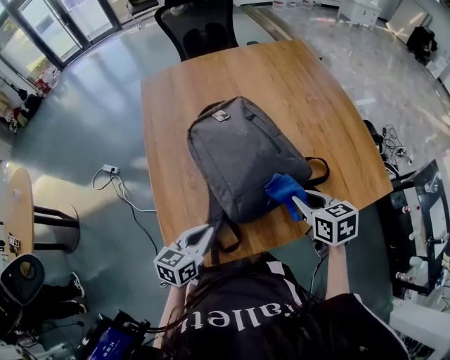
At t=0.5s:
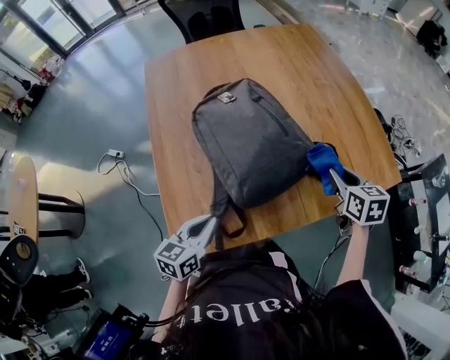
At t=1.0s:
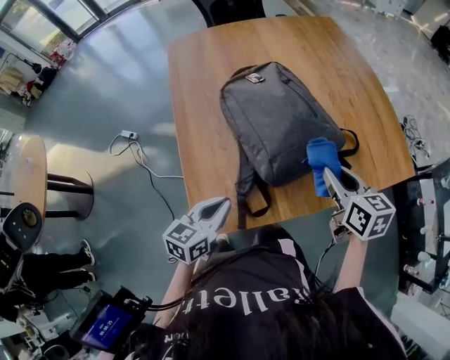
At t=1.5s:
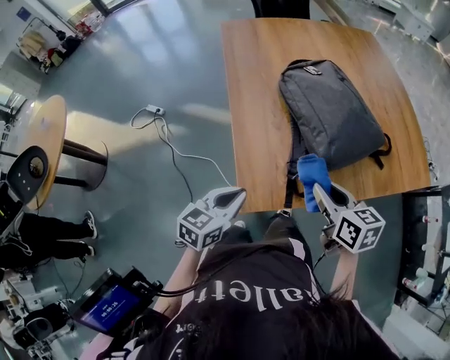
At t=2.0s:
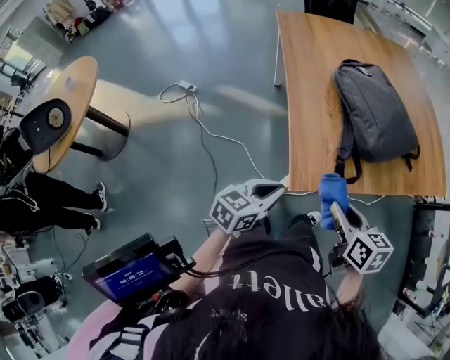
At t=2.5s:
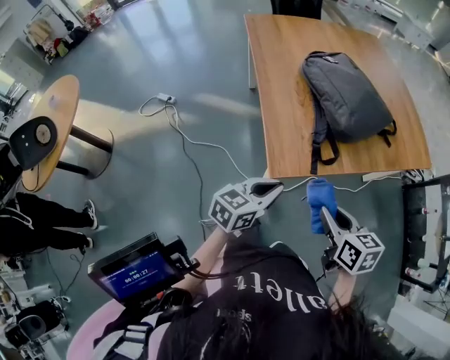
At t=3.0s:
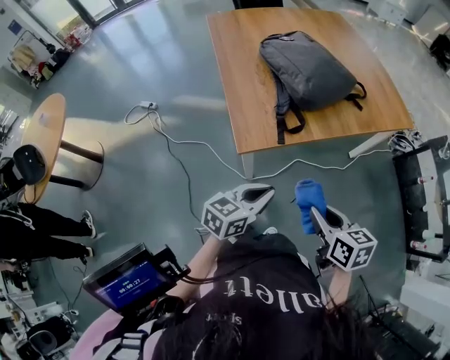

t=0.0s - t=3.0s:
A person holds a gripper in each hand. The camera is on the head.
t=0.0s - t=1.5s: Both grippers travel together to the left and backward, some 25 cm.
t=1.5s - t=3.0s: The right gripper moves backward, approximately 30 cm. Meanwhile the left gripper shifts approximately 25 cm backward and to the right.

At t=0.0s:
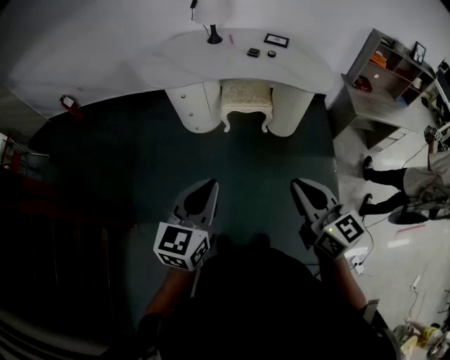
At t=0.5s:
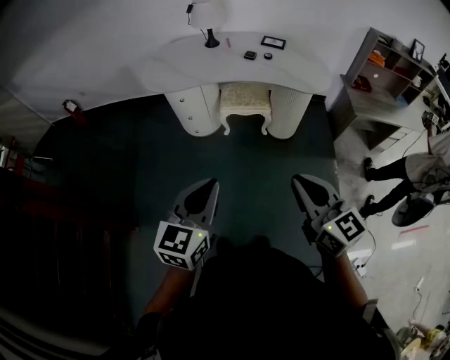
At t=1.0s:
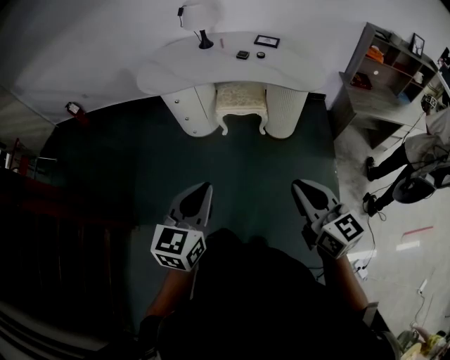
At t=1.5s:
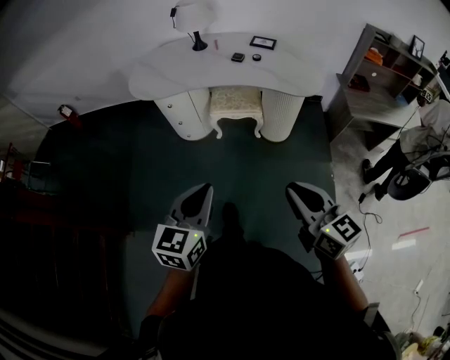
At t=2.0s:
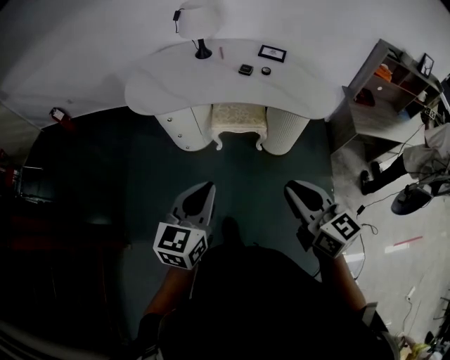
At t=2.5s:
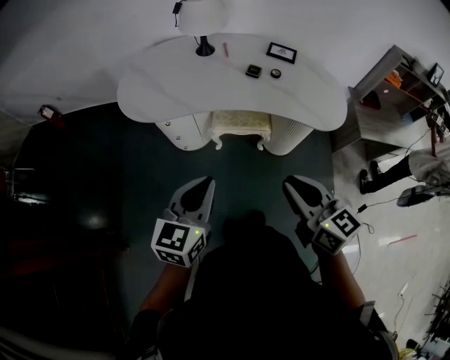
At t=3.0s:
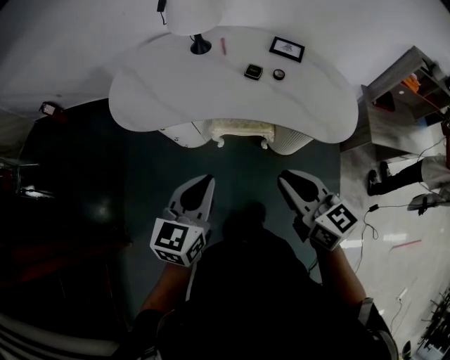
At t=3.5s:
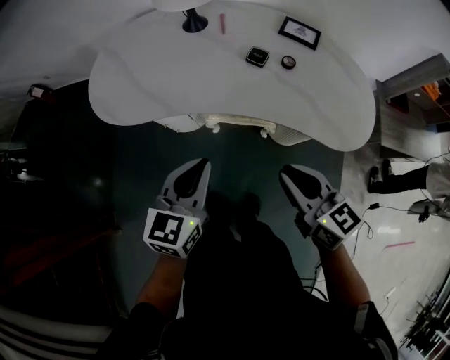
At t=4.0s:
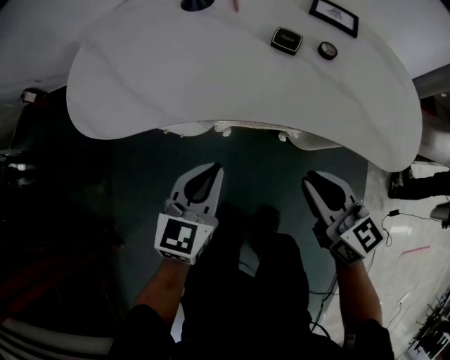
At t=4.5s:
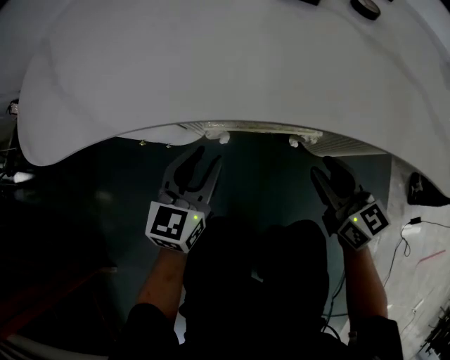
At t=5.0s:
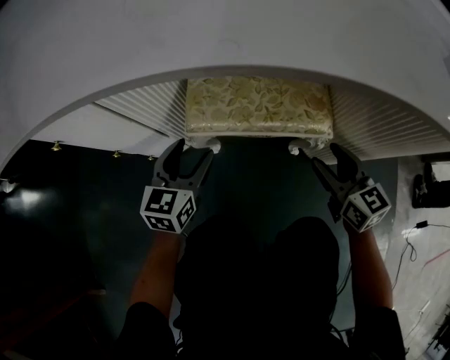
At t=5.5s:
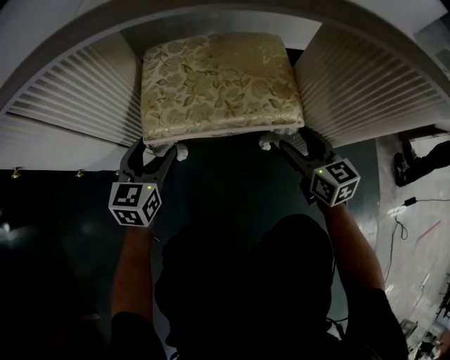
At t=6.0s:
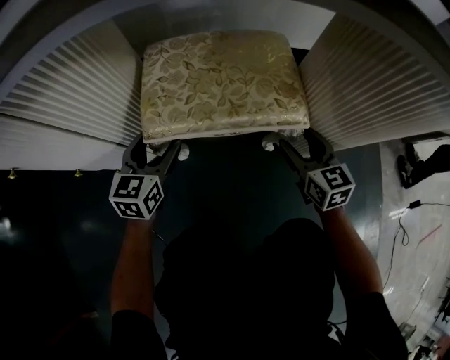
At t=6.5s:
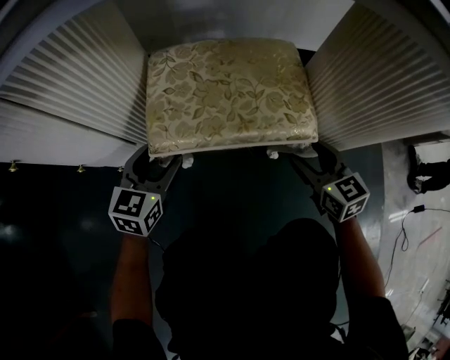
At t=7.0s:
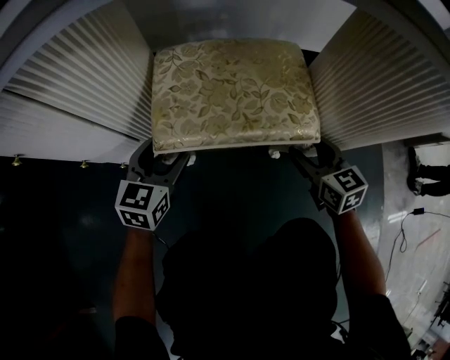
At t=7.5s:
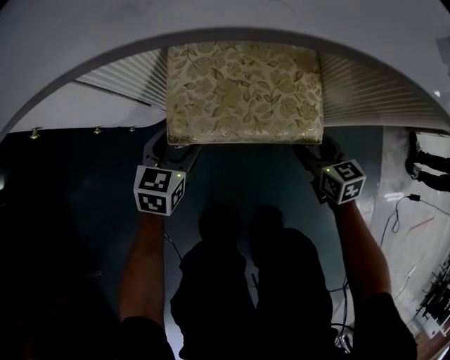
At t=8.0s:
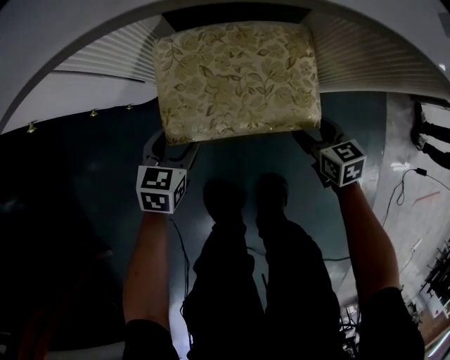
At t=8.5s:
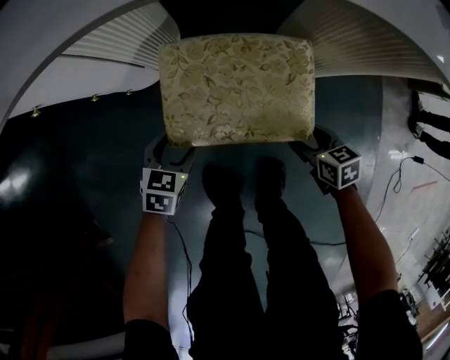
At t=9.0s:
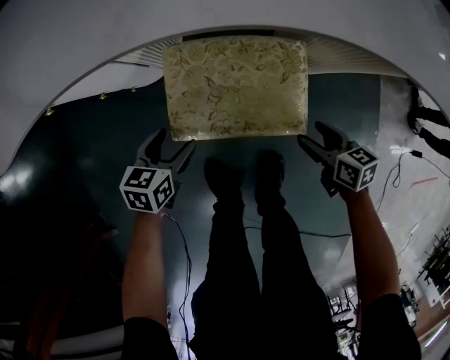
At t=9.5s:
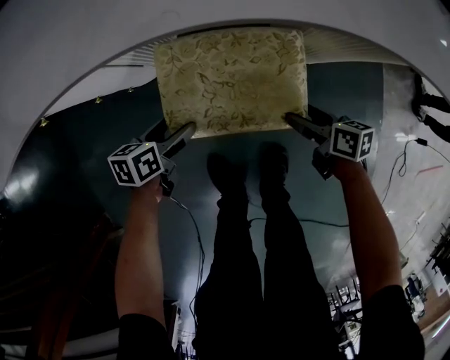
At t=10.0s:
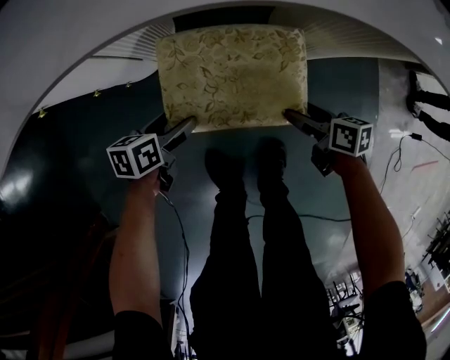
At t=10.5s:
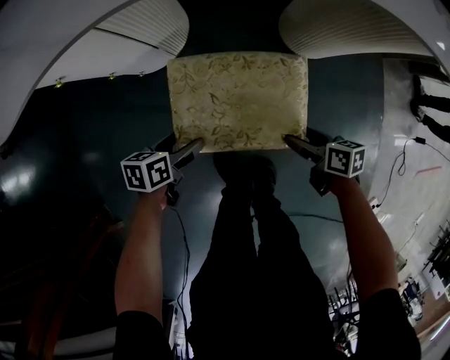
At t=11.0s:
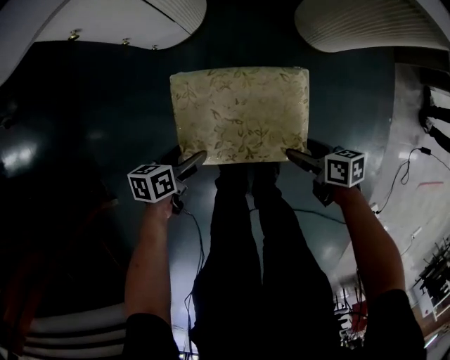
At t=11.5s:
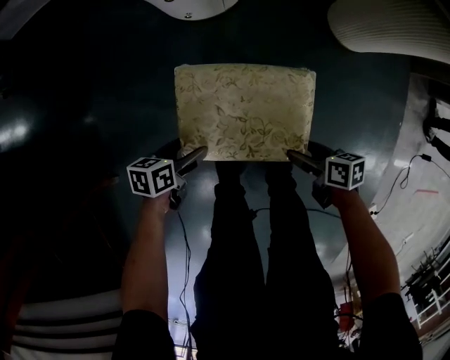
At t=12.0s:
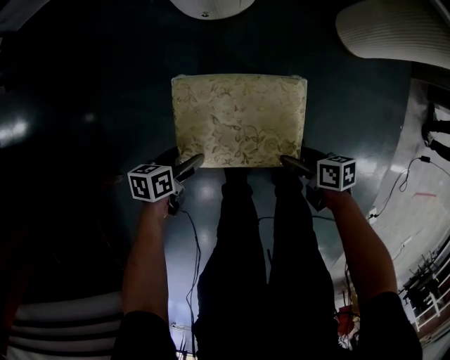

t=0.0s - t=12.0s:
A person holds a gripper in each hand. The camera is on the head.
t=0.0s - t=2.0s: Both grippers move forward and to the right, some 20 cm.
t=2.0s - t=4.0s: The grippers both shift forward and downward by about 50 cm.
t=4.0s - t=6.0s: The right gripper travels downward by approximately 50 cm, swivels approximately 30 degrees, and opens up. The left gripper is displaced downward and forward by about 50 cm, and opens its fingers.
t=6.0s - t=8.0s: The left gripper rotates approximately 30 degrees. Meanwhile the right gripper rotates roughly 30 degrees.
t=8.0s - t=10.0s: The left gripper changes place by roughly 5 cm, and rotates some 40 degrees, while the right gripper shifts about 5 cm upward, and turns by roughly 30 degrees.
t=10.0s - t=12.0s: The grippers move only a little.

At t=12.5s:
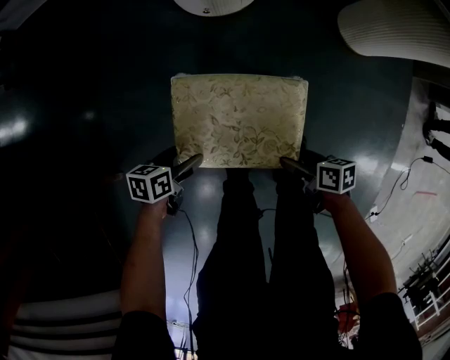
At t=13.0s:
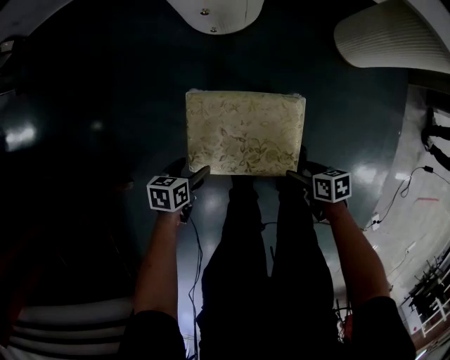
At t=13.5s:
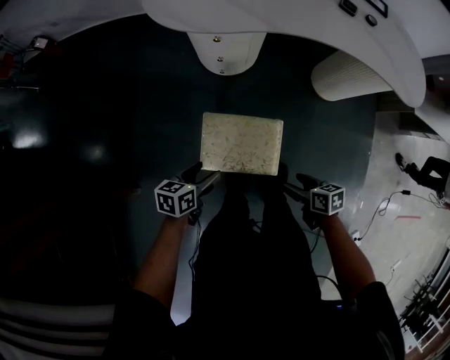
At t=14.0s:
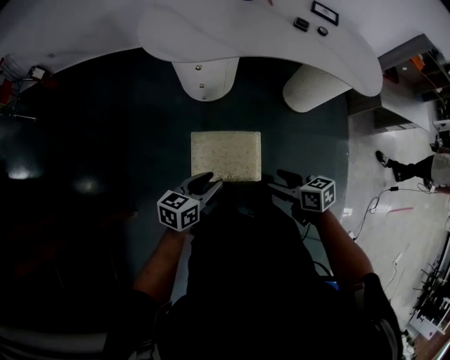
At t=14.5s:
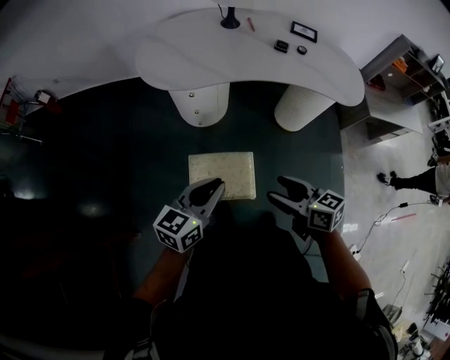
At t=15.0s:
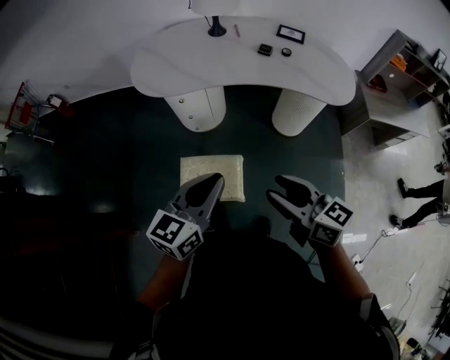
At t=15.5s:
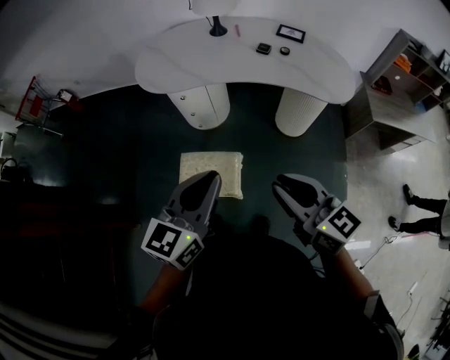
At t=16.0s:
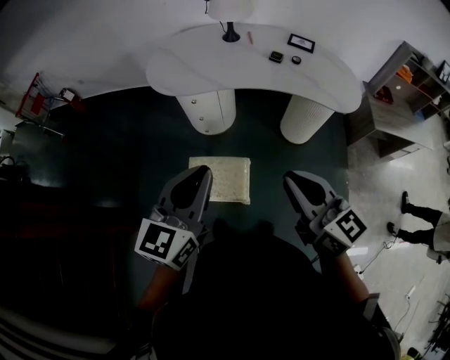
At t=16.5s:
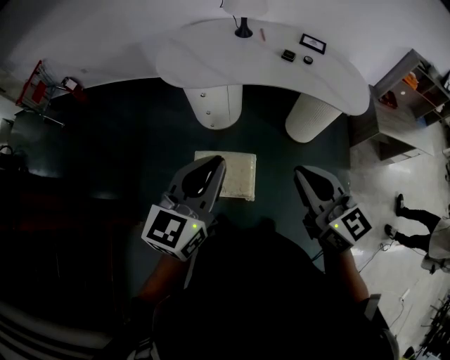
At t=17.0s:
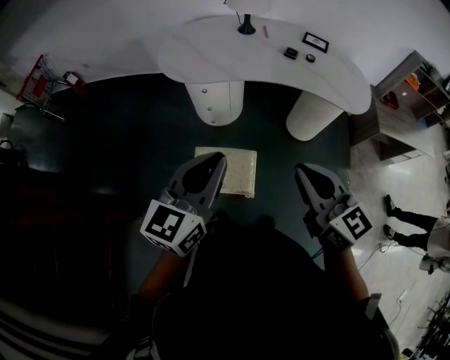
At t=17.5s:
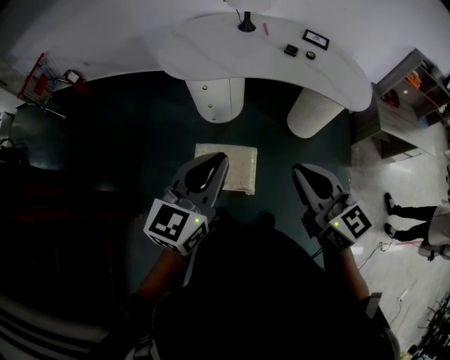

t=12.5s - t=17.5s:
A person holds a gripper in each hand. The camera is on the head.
t=12.5s - t=15.0s: Both grippers travel together upward, roughly 60 cm. The left gripper points its fingers roughly 40 degrees further upward, and closes up. Meanwhile the right gripper angles its fingers upward, by about 30 degrees, and closes up.
t=15.0s - t=17.5s: The left gripper heads upward and to the left, covering some 10 cm, while the right gripper travels upward by about 10 cm, and closes up.

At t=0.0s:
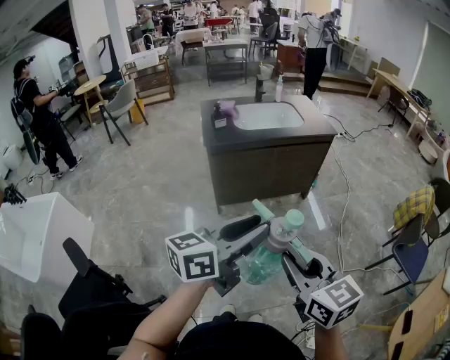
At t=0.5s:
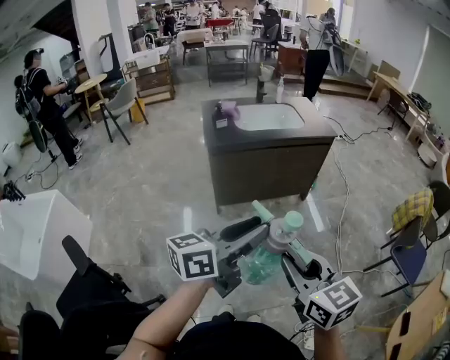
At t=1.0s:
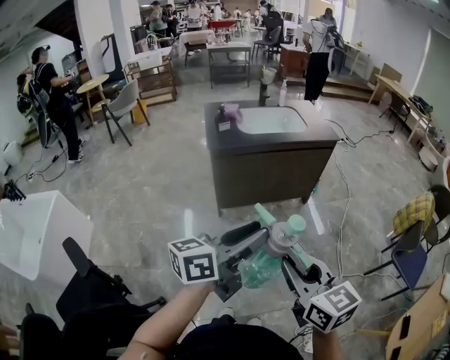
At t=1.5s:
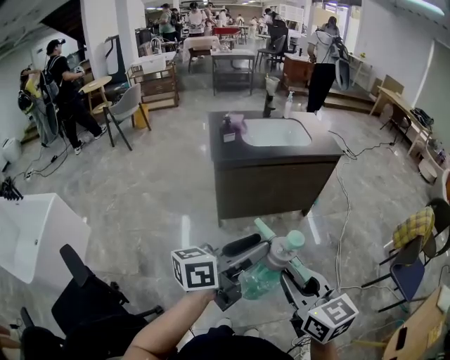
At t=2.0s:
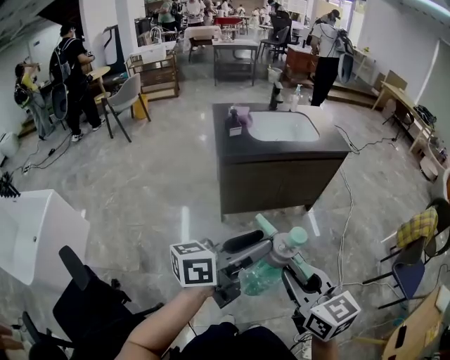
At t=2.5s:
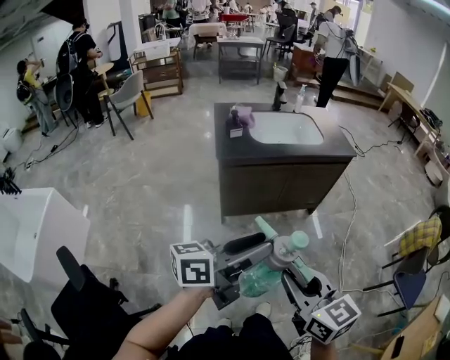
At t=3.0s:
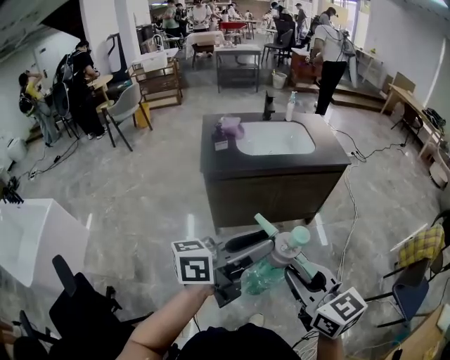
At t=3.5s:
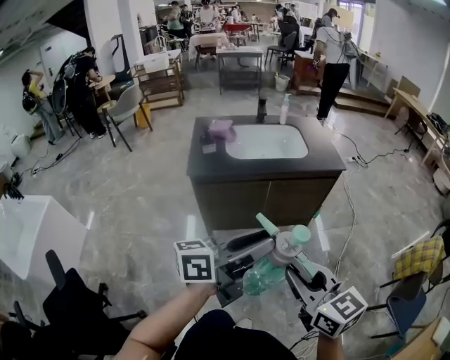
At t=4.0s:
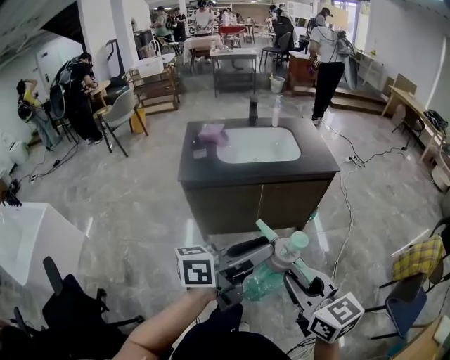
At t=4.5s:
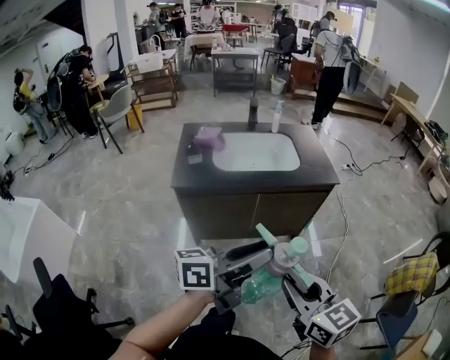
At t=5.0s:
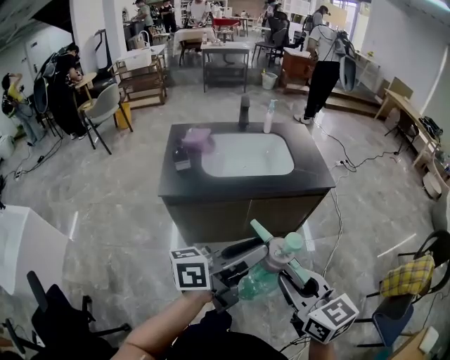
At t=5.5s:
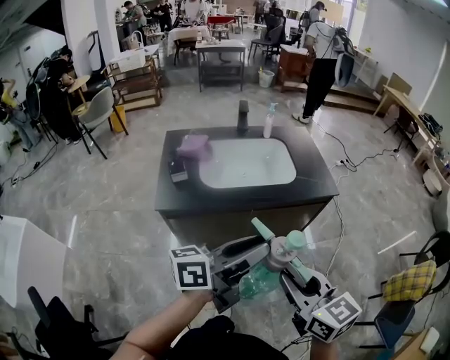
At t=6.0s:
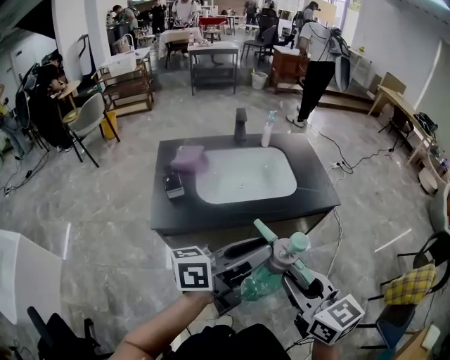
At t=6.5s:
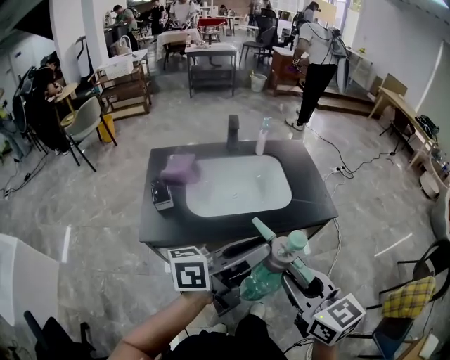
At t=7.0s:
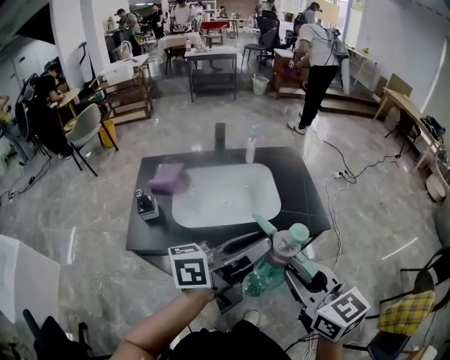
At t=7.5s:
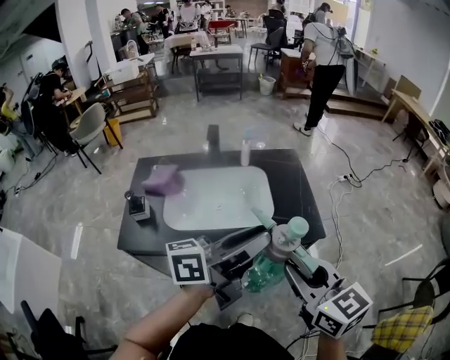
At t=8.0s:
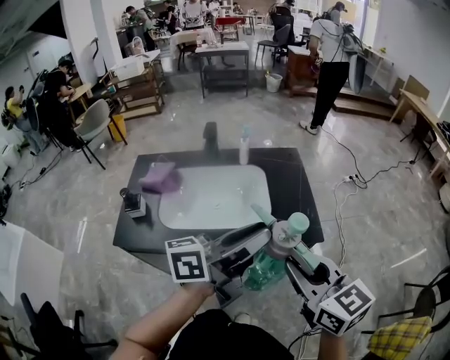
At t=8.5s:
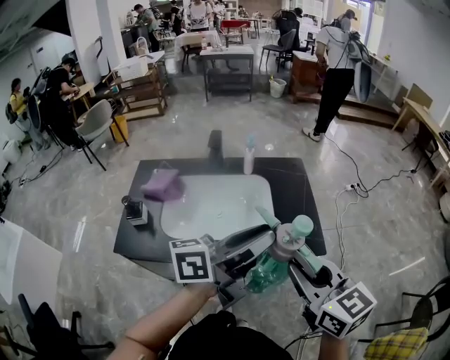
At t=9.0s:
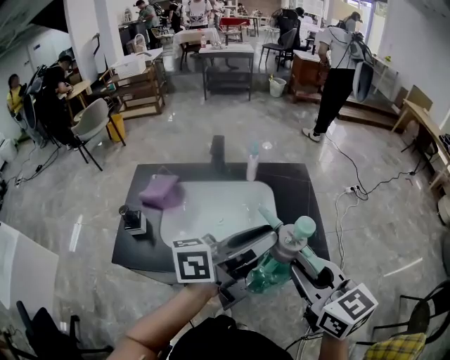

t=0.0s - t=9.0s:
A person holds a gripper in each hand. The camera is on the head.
t=0.0s - t=2.0s: The left gripper travels to the left and forward by some 10 cm. The right gripper goes about 10 cm to the left.
t=2.0s - t=4.5s: The grippers both shift forward and to the right by roughly 30 cm.
t=4.5s - t=7.0s: Both grippers move forward, about 35 cm.
t=7.0s - t=9.0s: Both grippers move forward, approximately 15 cm.
